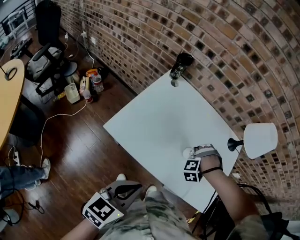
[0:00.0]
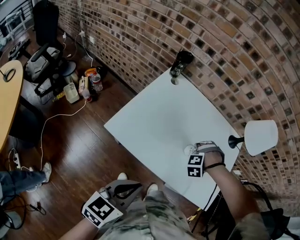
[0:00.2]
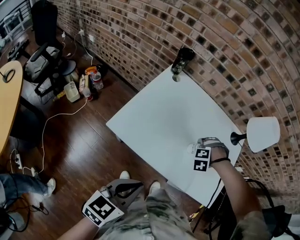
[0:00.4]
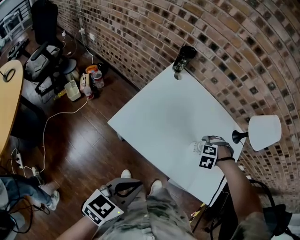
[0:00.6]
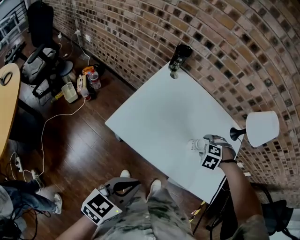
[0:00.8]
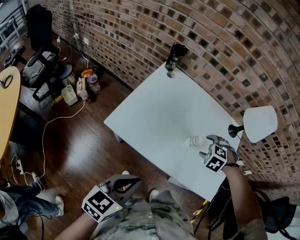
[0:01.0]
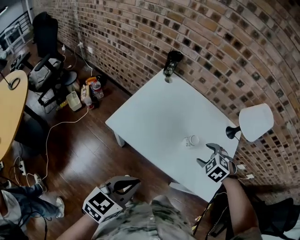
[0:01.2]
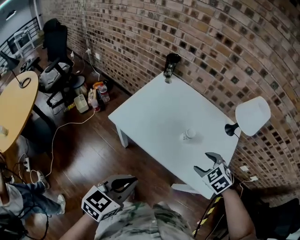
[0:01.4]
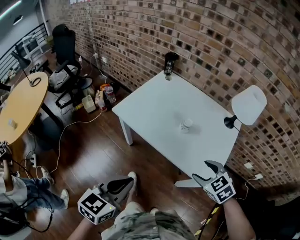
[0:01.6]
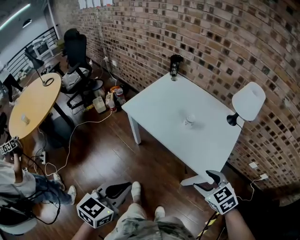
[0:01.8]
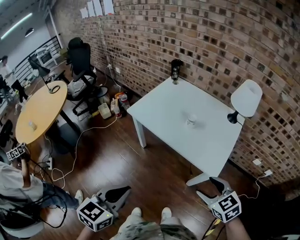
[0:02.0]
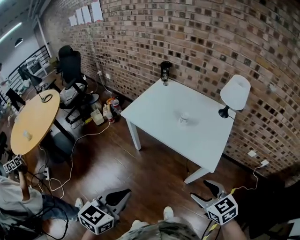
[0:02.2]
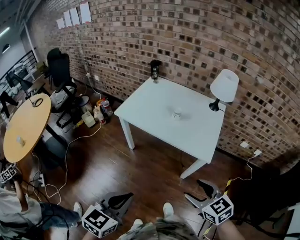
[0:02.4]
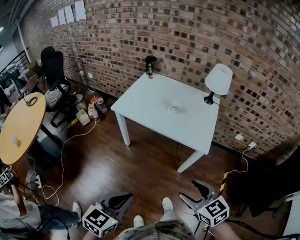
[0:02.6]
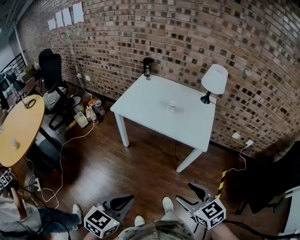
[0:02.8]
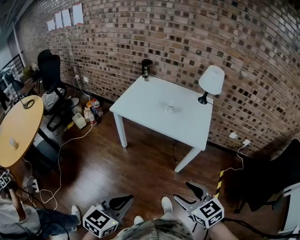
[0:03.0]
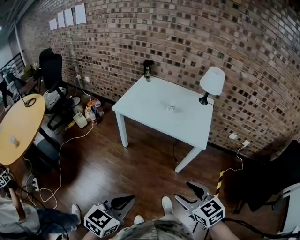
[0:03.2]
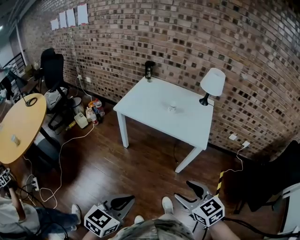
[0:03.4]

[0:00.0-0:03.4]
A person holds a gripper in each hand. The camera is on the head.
0:00.0 to 0:01.6: The left gripper ends up about 20 cm from where it was. Meanwhile the right gripper shifts by approximately 30 cm, and changes its angle by approximately 90 degrees.
0:01.6 to 0:03.4: The two grippers go about 35 cm backward. The right gripper swivels approximately 30 degrees.

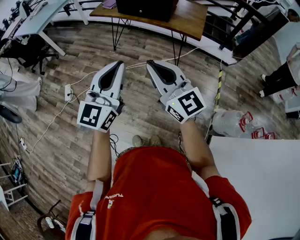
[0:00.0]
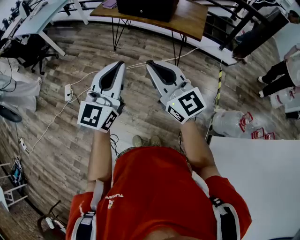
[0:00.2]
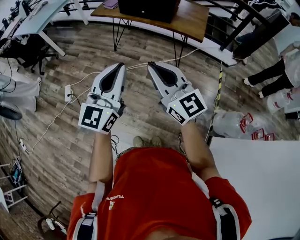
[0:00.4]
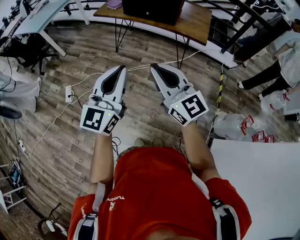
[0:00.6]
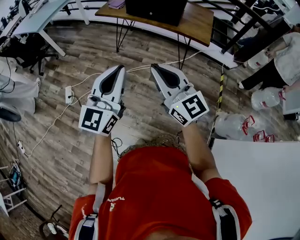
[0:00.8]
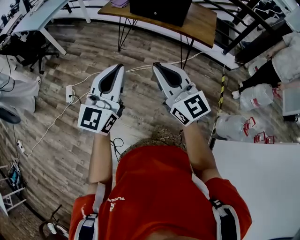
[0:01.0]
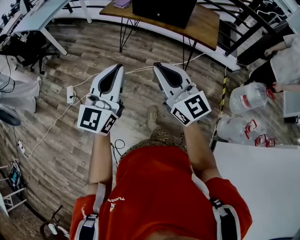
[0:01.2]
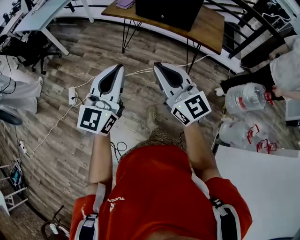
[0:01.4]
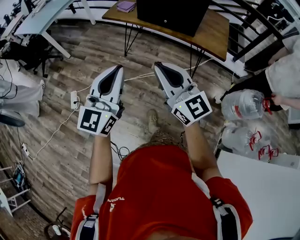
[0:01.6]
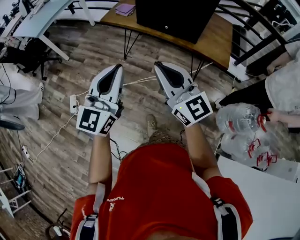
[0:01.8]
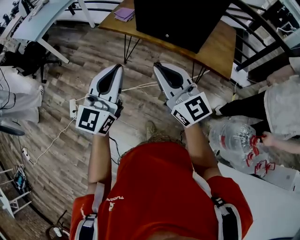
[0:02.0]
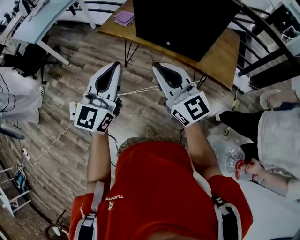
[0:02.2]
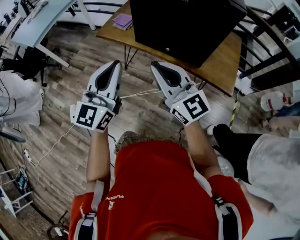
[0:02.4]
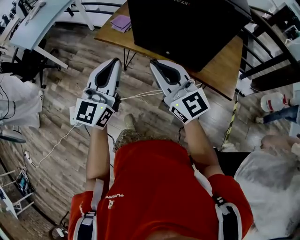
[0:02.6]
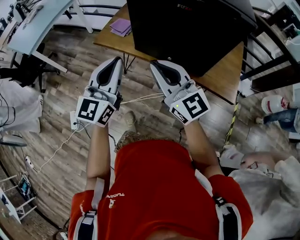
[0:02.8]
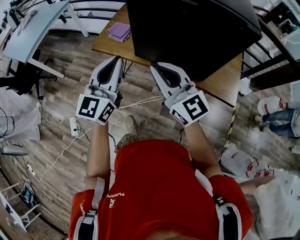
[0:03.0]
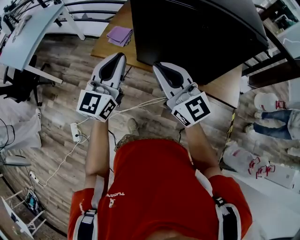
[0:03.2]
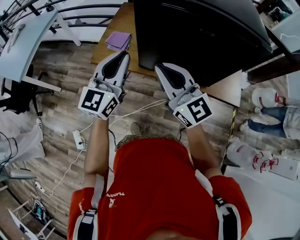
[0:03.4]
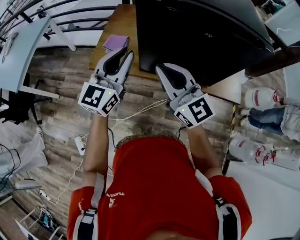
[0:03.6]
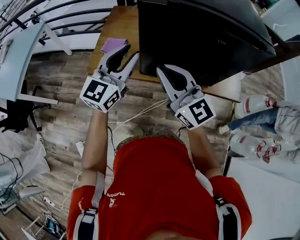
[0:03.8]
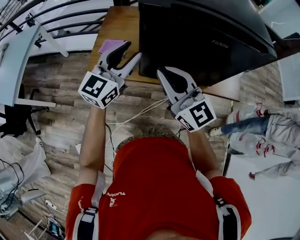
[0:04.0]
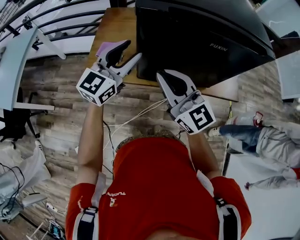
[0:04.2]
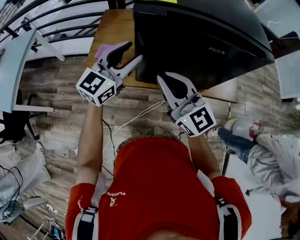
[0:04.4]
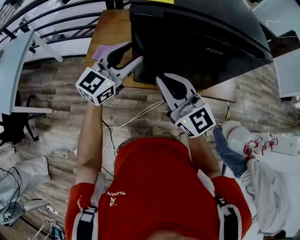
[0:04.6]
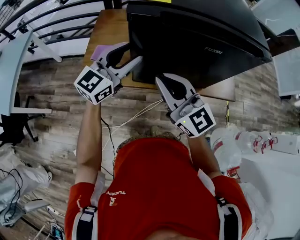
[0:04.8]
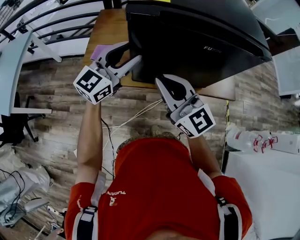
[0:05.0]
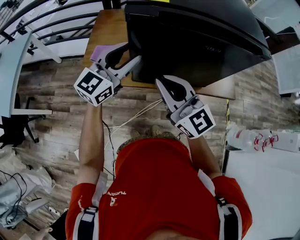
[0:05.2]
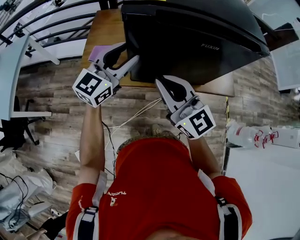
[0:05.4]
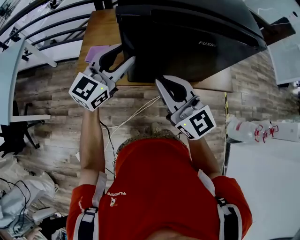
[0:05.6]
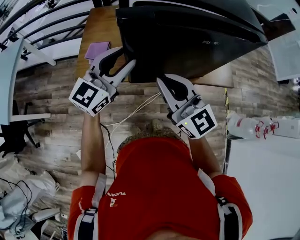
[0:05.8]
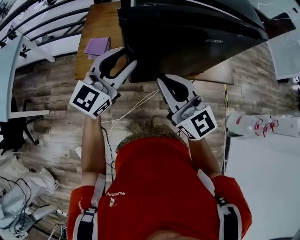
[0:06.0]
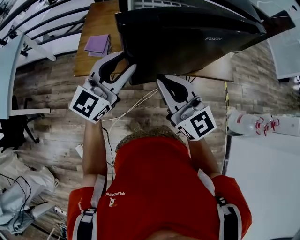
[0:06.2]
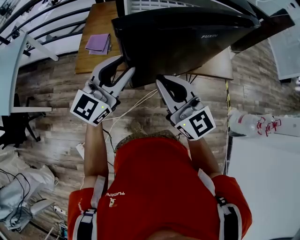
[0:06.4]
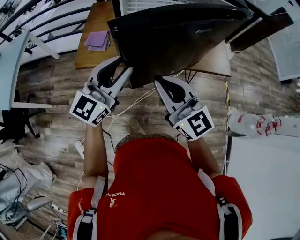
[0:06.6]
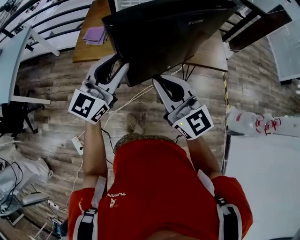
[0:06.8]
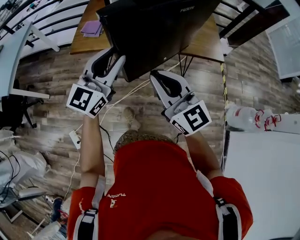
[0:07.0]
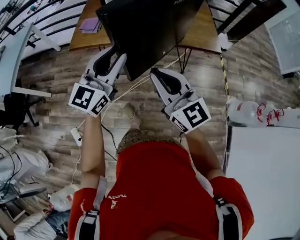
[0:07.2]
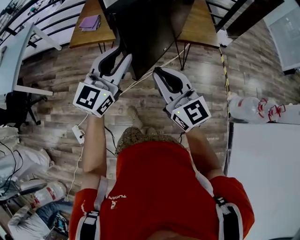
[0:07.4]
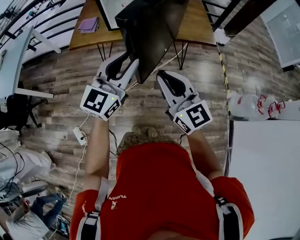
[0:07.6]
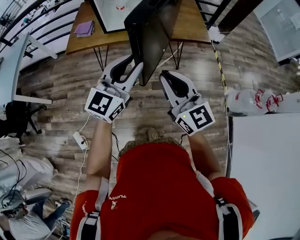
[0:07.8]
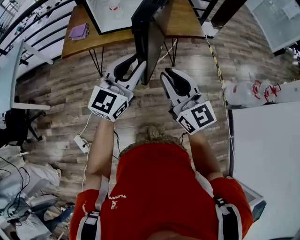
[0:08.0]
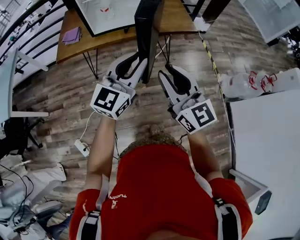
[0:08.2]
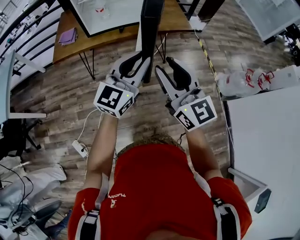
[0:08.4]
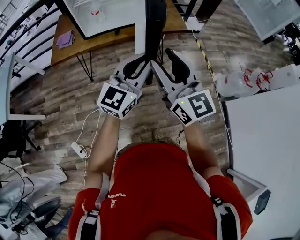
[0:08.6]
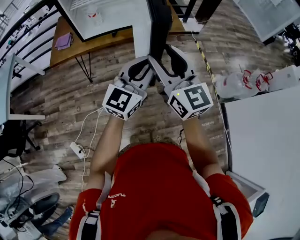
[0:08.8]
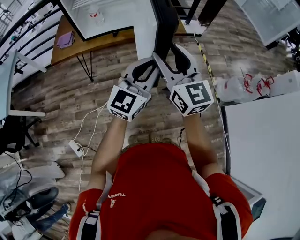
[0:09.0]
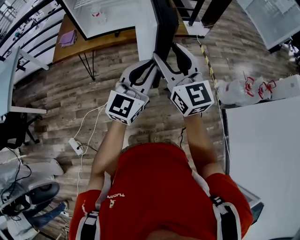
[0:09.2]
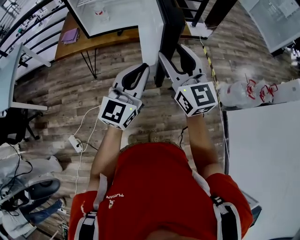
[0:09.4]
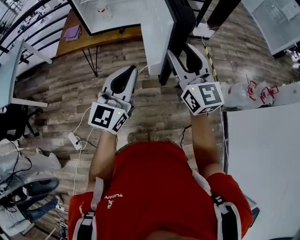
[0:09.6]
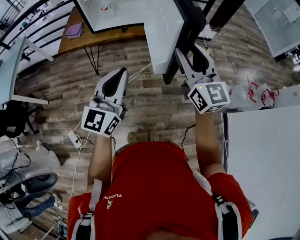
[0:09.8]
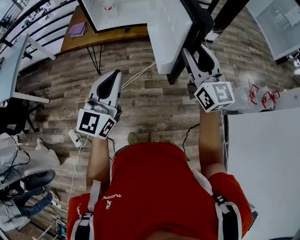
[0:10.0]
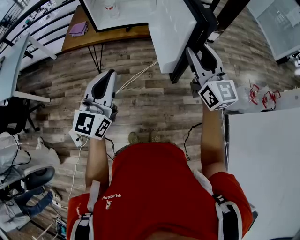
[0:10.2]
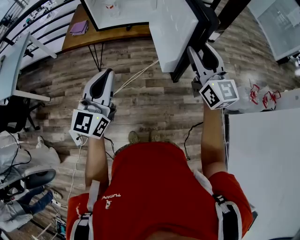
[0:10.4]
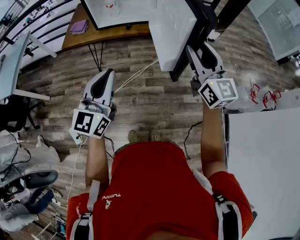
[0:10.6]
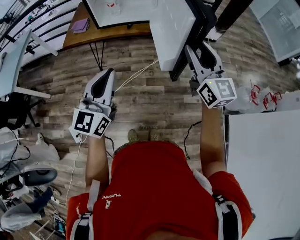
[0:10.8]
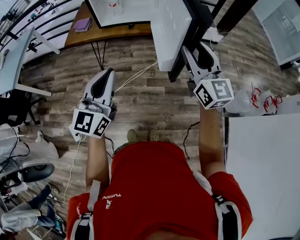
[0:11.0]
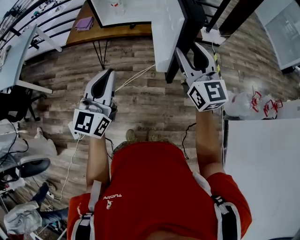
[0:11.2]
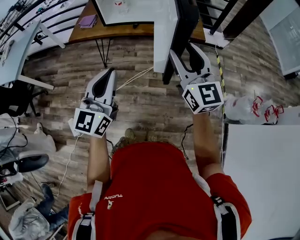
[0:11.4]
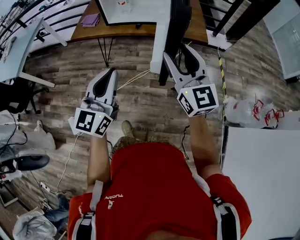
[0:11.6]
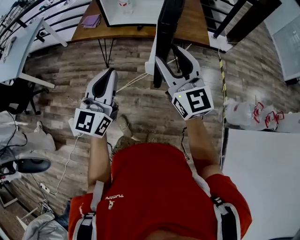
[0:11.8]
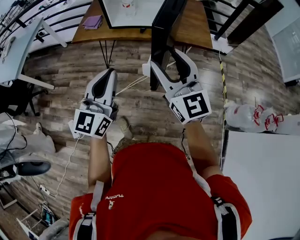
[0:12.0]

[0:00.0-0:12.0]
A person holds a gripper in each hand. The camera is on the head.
0:00.0 to 0:01.6: Both grippers travel together forward and to the left, some 20 cm.
0:01.6 to 0:03.0: Both grippers move forward, about 40 cm.
0:03.0 to 0:04.4: The left gripper ends up roughly 20 cm from where it was, rotates approximately 40 degrees, and opens. The right gripper moves some 10 cm.
0:04.4 to 0:06.0: The grippers move only a little.
0:06.0 to 0:07.6: Both grippers travel together backward and to the right, roughly 30 cm.
0:07.6 to 0:09.0: The right gripper goes about 15 cm to the right and upward, and opens up, while the left gripper goes some 20 cm to the right.
0:09.0 to 0:10.4: The left gripper goes about 15 cm to the left, and changes its angle by about 20 degrees. Meanwhile the right gripper travels to the right by some 5 cm.
0:10.4 to 0:12.0: The right gripper goes about 15 cm to the left.

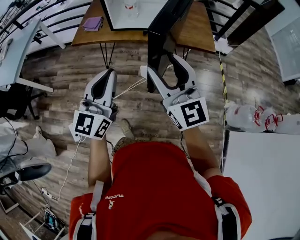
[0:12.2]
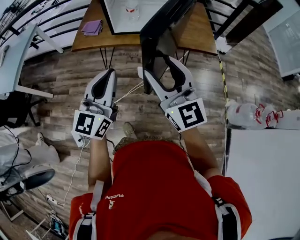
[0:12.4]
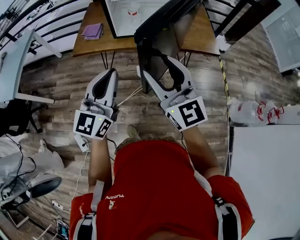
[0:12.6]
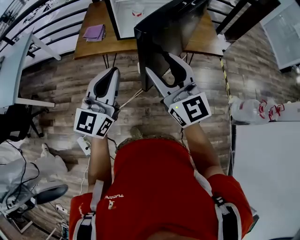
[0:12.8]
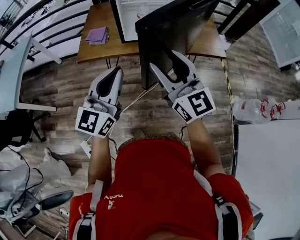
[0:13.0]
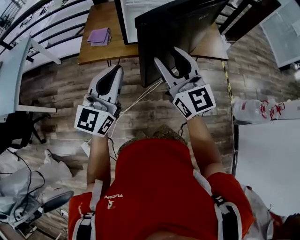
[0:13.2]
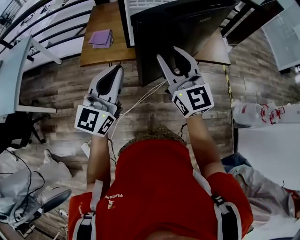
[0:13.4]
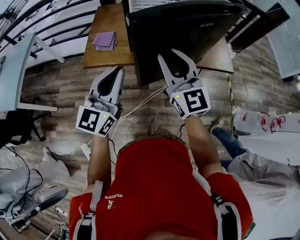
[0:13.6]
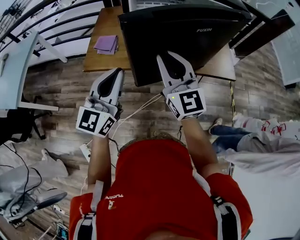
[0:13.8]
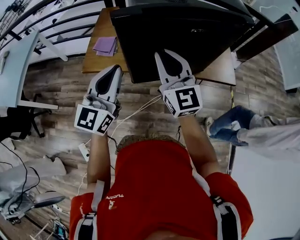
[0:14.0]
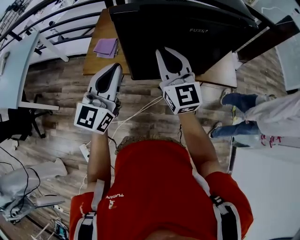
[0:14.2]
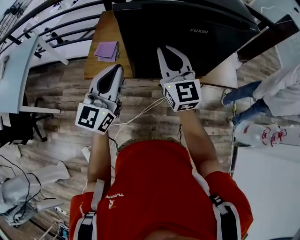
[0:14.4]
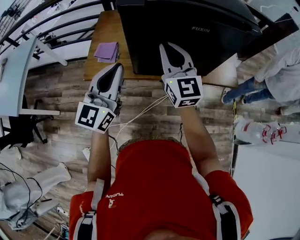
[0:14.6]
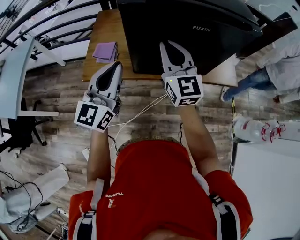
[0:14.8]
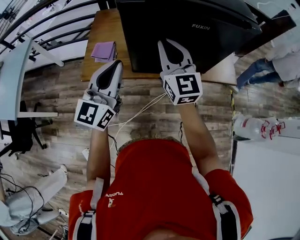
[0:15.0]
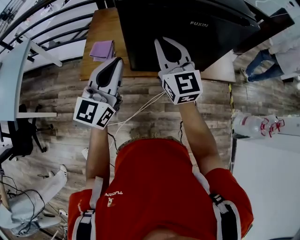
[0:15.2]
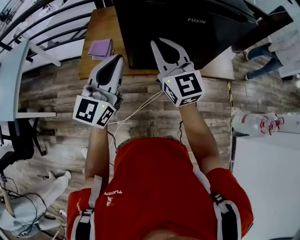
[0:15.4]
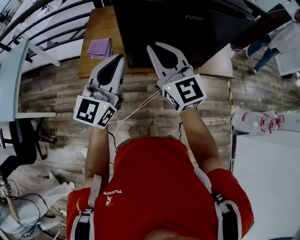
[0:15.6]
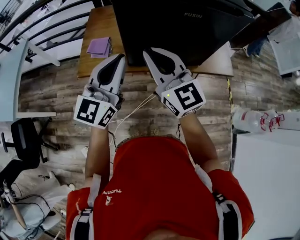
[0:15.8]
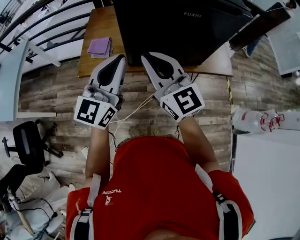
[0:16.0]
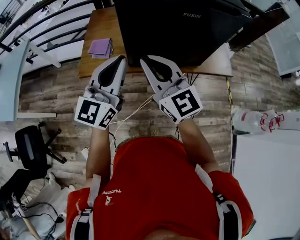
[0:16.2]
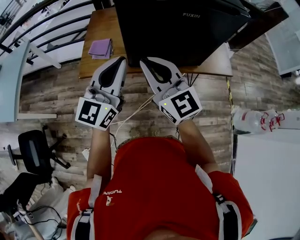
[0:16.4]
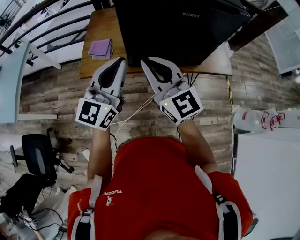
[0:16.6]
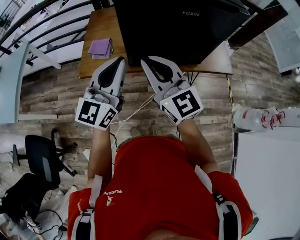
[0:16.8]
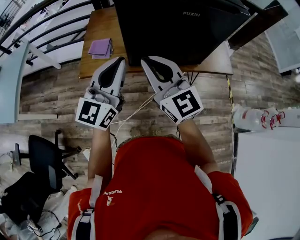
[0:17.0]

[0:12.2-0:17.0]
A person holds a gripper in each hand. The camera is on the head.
0:12.2 to 0:13.8: Both grippers move forward and to the left, roughly 25 cm. The right gripper closes up.
0:13.8 to 0:15.4: The grippers both shift forward by approximately 10 cm.
0:15.4 to 0:17.0: The right gripper goes approximately 10 cm backward.

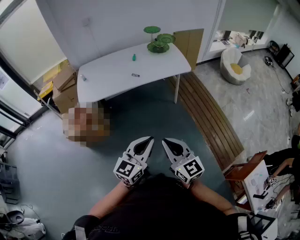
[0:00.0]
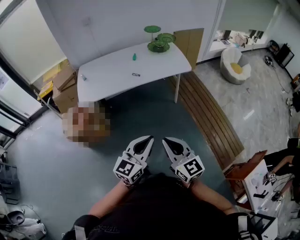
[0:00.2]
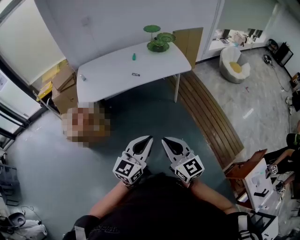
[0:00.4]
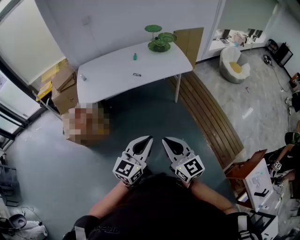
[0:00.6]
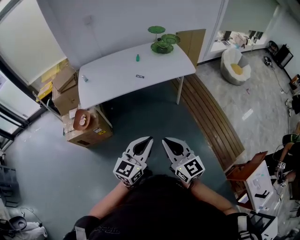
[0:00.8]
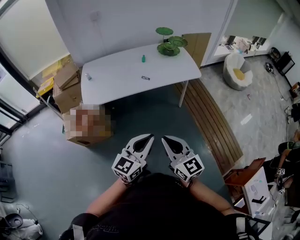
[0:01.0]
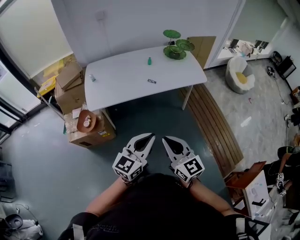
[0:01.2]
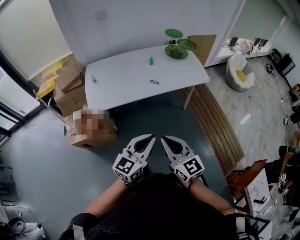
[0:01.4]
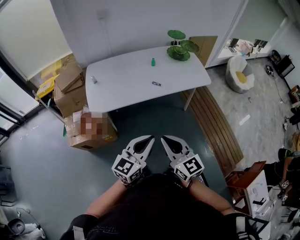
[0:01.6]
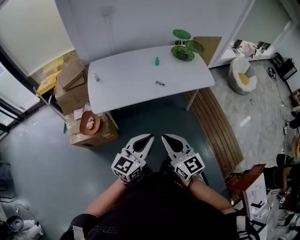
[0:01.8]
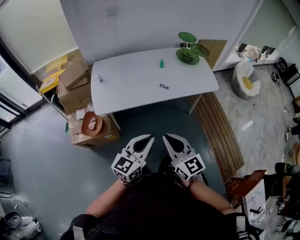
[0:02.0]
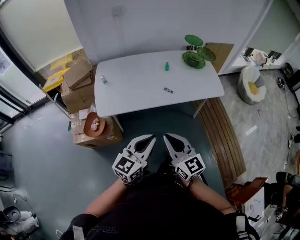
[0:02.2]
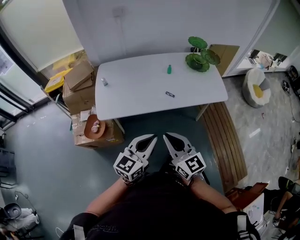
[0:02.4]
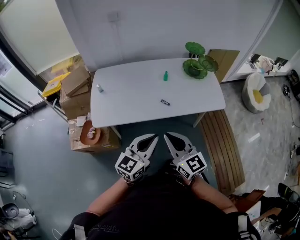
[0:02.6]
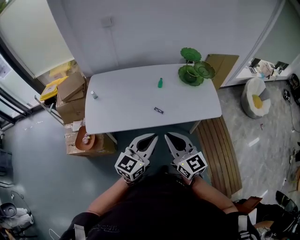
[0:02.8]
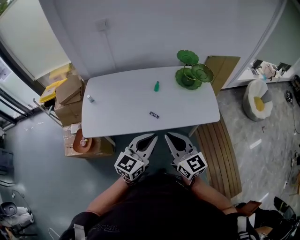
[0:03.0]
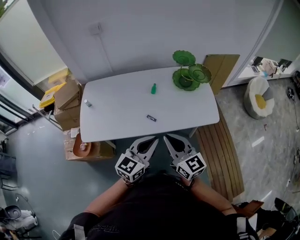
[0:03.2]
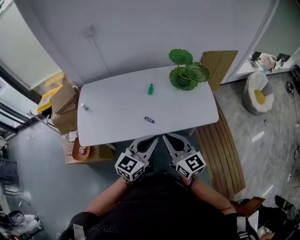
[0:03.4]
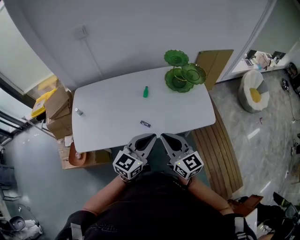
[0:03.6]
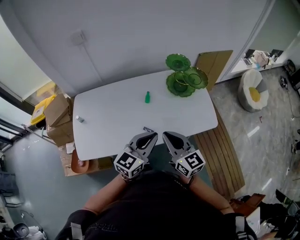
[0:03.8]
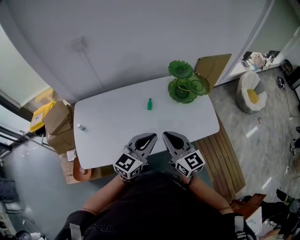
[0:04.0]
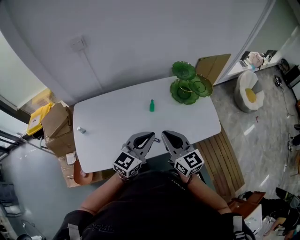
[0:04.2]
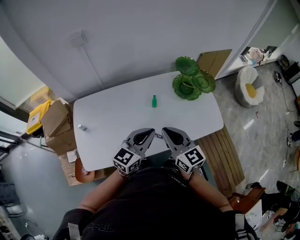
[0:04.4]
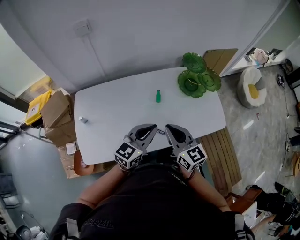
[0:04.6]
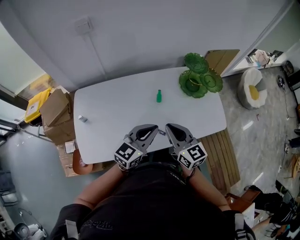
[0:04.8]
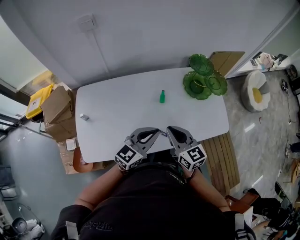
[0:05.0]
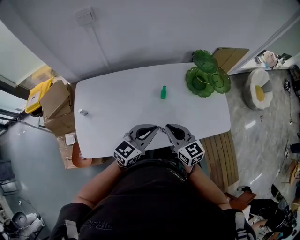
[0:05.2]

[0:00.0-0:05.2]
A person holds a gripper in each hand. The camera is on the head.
0:00.0 to 0:01.8: Both grippers move to the left and forward, approximately 30 cm.
0:01.8 to 0:03.4: The grippers both shift forward and to the right by some 35 cm.
0:03.4 to 0:05.2: The two grippers go approximately 25 cm forward, to the left and downward.
